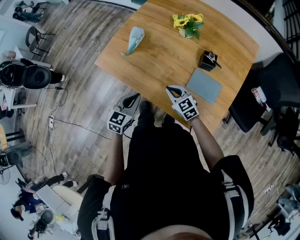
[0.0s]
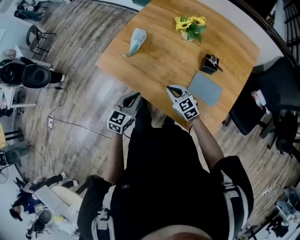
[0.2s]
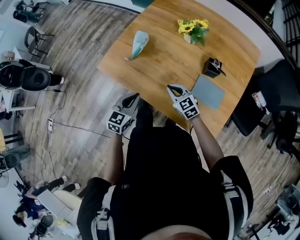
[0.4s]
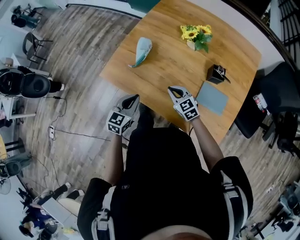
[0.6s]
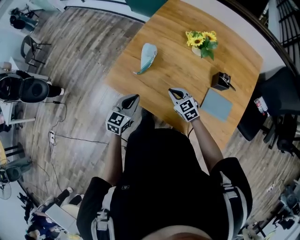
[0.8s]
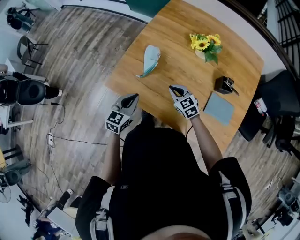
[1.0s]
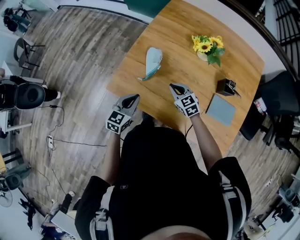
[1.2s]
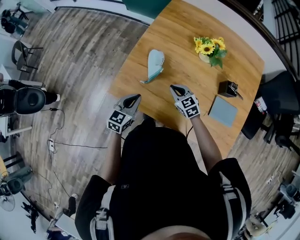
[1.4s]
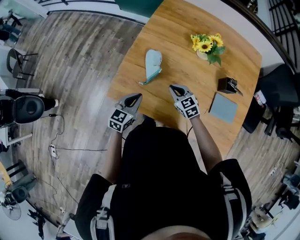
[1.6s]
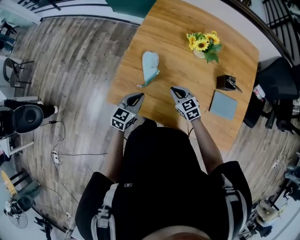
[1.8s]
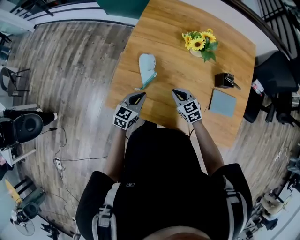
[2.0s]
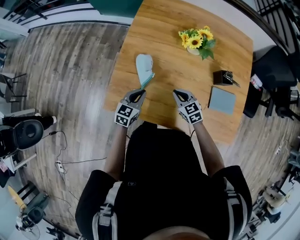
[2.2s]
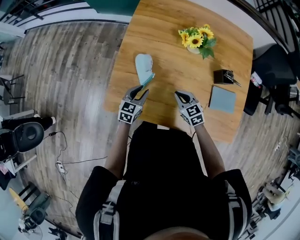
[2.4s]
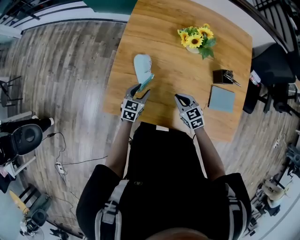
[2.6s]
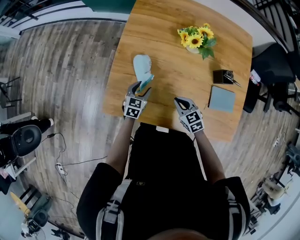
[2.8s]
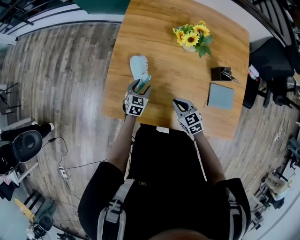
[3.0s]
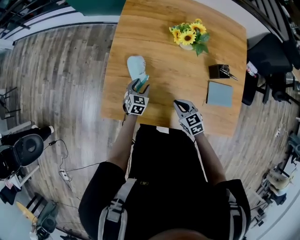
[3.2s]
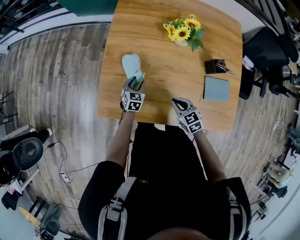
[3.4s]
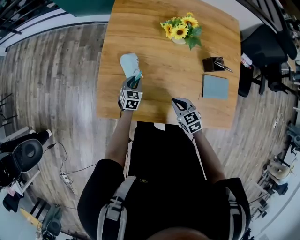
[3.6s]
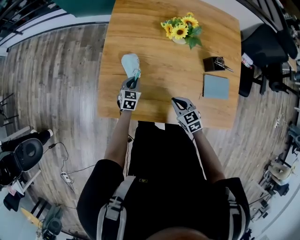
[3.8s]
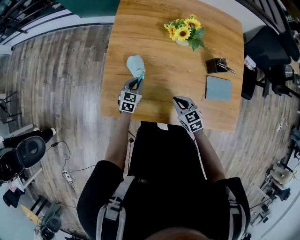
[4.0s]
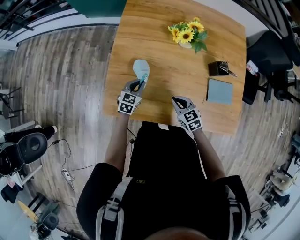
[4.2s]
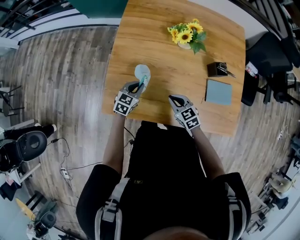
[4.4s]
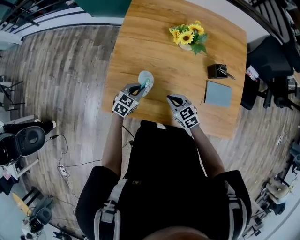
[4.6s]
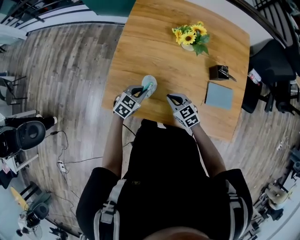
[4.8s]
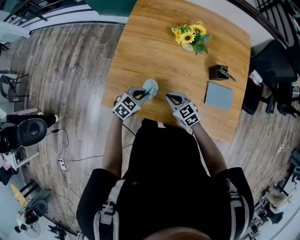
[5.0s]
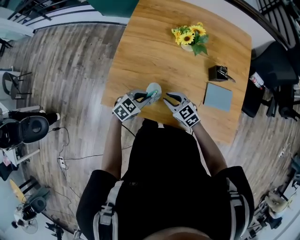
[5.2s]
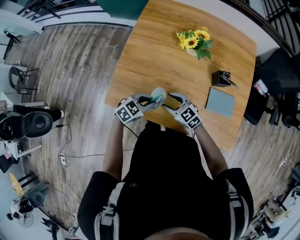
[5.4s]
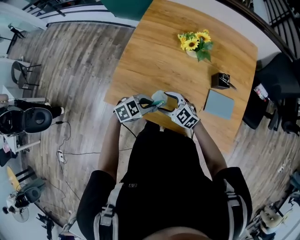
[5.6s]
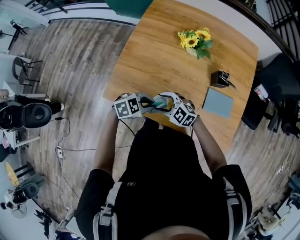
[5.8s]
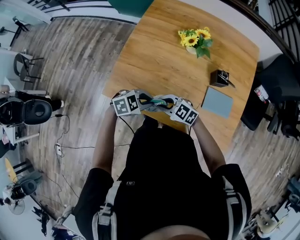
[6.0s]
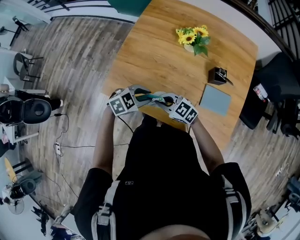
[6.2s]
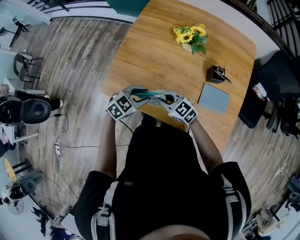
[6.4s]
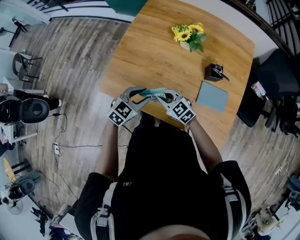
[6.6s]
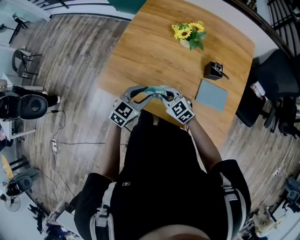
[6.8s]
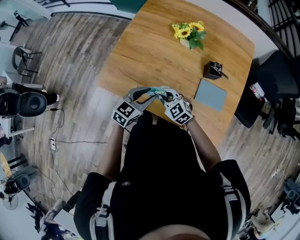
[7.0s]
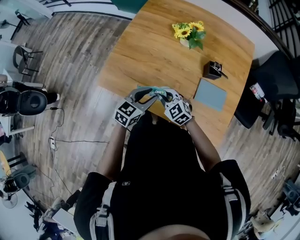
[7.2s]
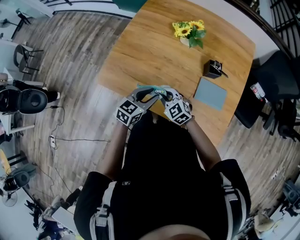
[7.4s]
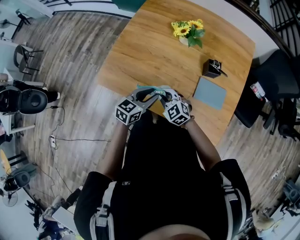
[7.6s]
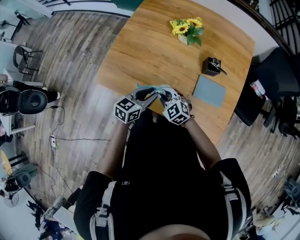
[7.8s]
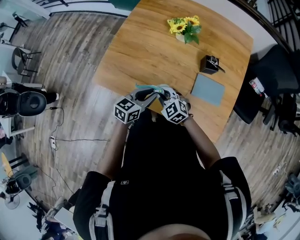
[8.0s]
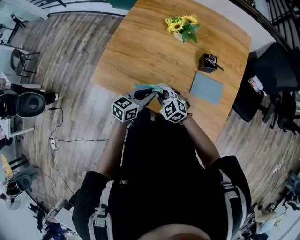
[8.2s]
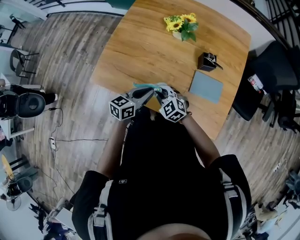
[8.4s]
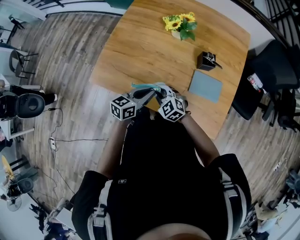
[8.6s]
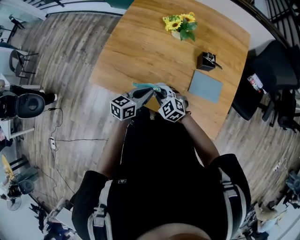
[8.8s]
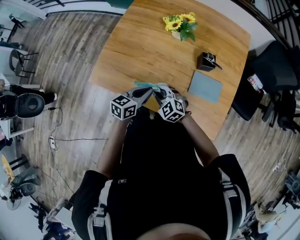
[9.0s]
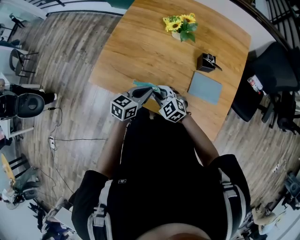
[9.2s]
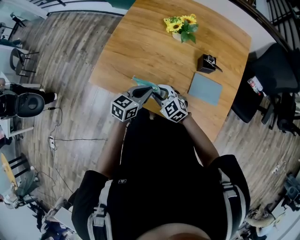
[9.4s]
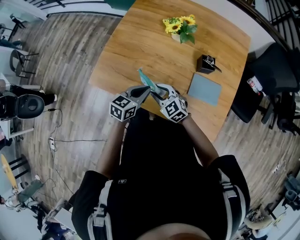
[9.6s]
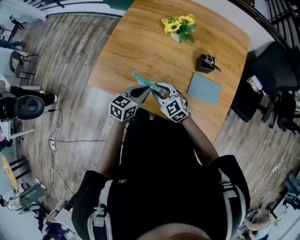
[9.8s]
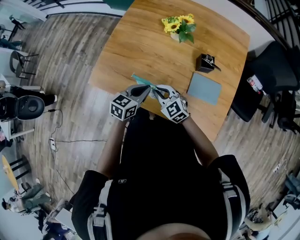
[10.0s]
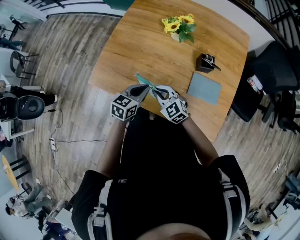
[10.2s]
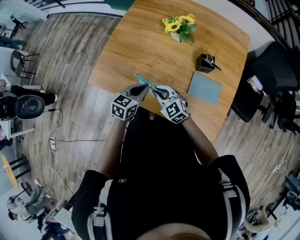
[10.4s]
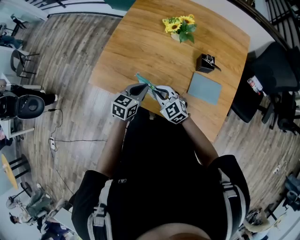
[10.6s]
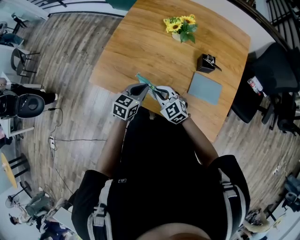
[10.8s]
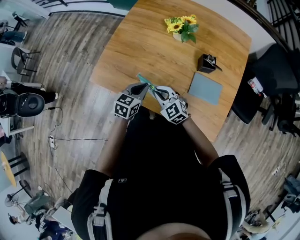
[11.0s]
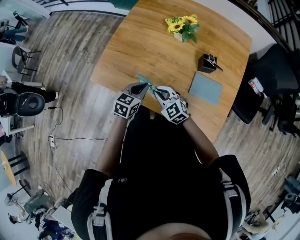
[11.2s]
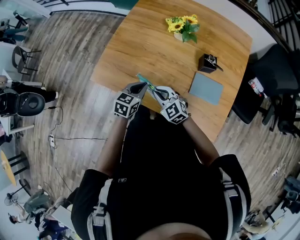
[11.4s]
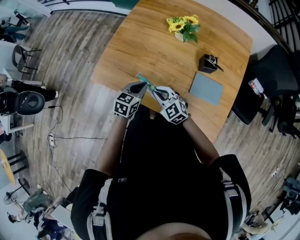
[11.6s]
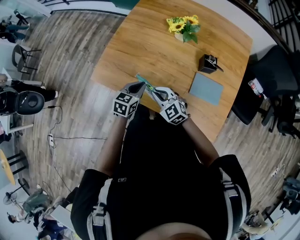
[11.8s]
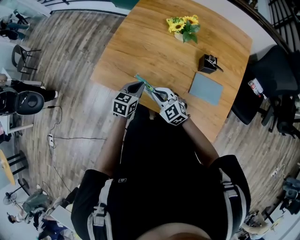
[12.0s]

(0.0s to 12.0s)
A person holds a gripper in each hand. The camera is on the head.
0.0s - 1.6s: The two grippers go about 25 cm forward and to the left.
1.6s - 3.0s: The left gripper heads downward, forward and to the right, covering roughly 20 cm, and opens; the right gripper moves approximately 5 cm.
3.0s - 4.4s: The left gripper heads upward, covering some 5 cm, and closes its fingers.
4.4s - 6.0s: The left gripper moves approximately 20 cm, and turns by roughly 40 degrees. The right gripper moves about 10 cm, rotates roughly 50 degrees, and opens, then closes once more.
6.0s - 7.6s: The left gripper shifts by approximately 5 cm, turns by roughly 50 degrees, and opens its fingers; the right gripper moves approximately 5 cm, and rotates about 20 degrees.
7.6s - 9.0s: The left gripper closes up.
9.0s - 10.4s: The right gripper opens, then closes again.
10.4s - 12.0s: There are only small adjustments of the grippers.

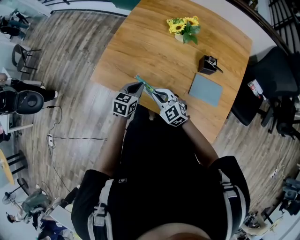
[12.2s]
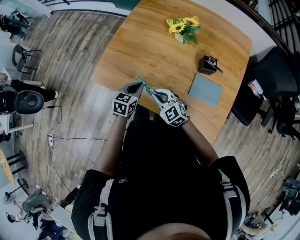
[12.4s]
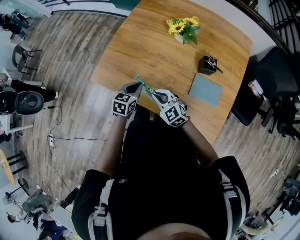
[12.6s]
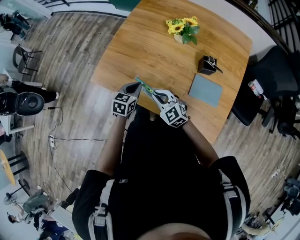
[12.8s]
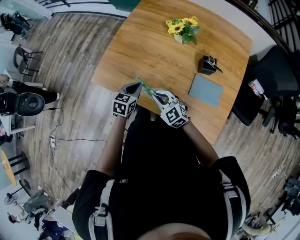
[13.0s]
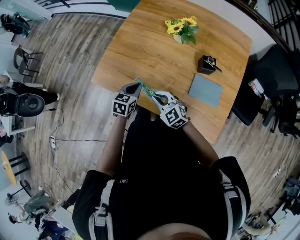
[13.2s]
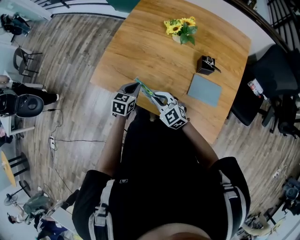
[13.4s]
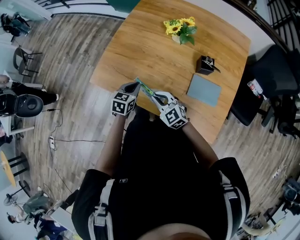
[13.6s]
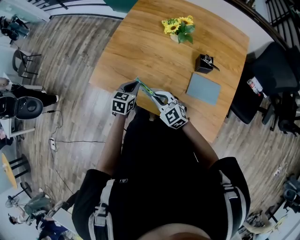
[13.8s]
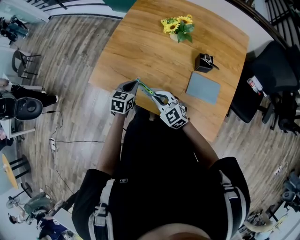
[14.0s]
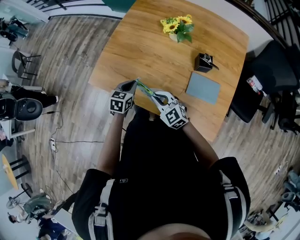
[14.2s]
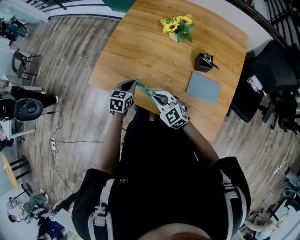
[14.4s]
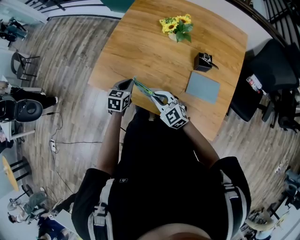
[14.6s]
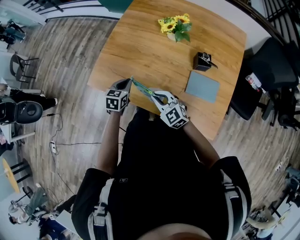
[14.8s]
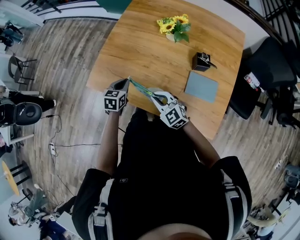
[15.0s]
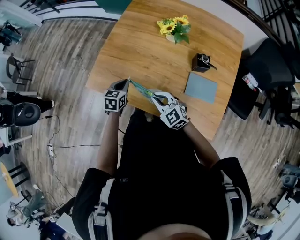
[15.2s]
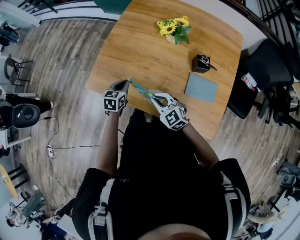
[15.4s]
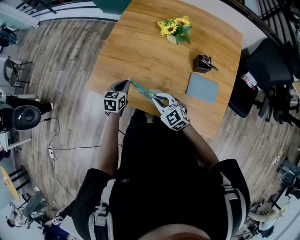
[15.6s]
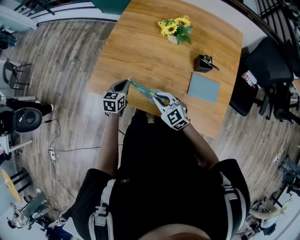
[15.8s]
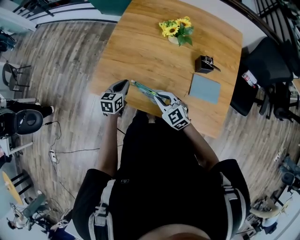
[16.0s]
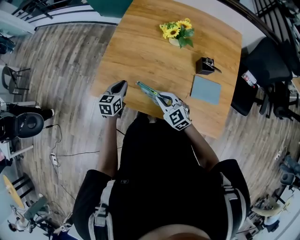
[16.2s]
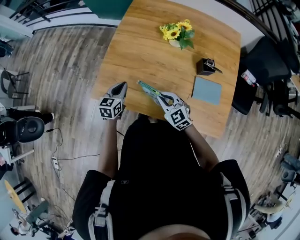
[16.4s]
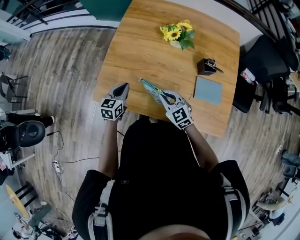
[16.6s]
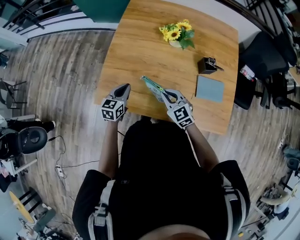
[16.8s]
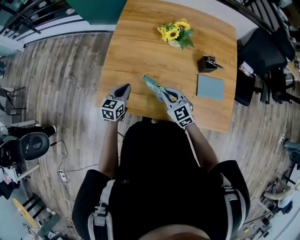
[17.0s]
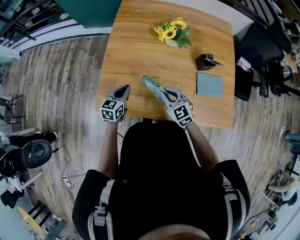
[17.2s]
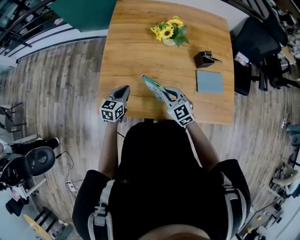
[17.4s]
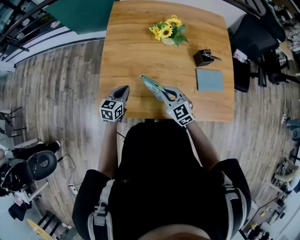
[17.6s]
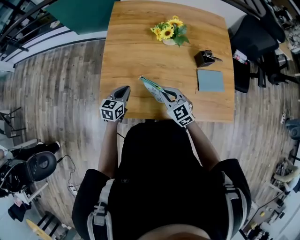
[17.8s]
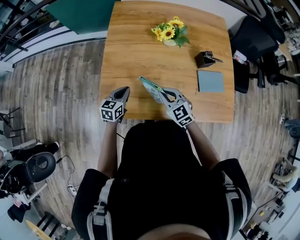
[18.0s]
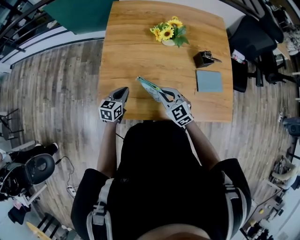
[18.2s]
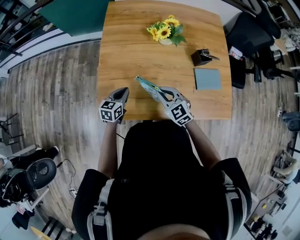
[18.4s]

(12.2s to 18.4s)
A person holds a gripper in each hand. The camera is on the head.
12.2s - 13.8s: There are only small adjustments of the grippers.
13.8s - 15.4s: The left gripper heads to the left, covering approximately 5 cm.
15.4s - 16.8s: The right gripper goes some 10 cm forward; the left gripper is displaced to the left and forward by some 10 cm.
16.8s - 18.4s: The right gripper travels to the left by approximately 5 cm. Meanwhile the left gripper changes place by approximately 5 cm.

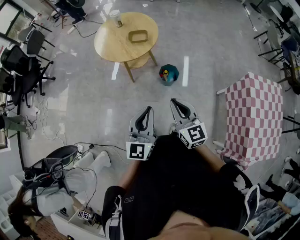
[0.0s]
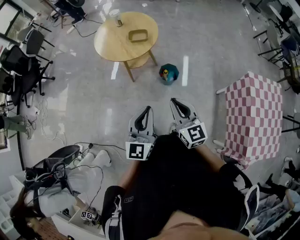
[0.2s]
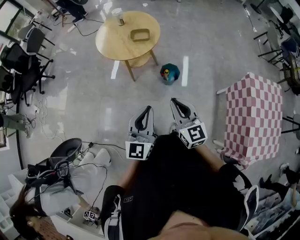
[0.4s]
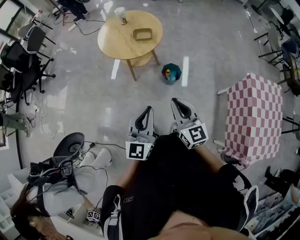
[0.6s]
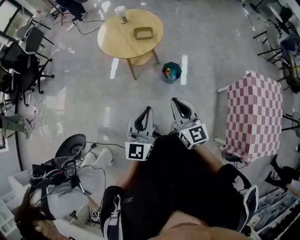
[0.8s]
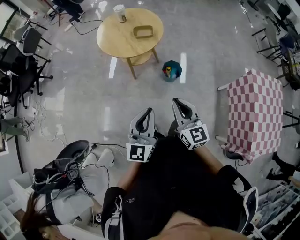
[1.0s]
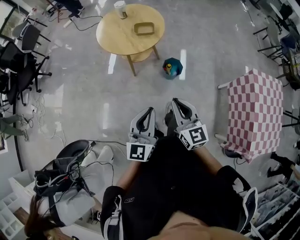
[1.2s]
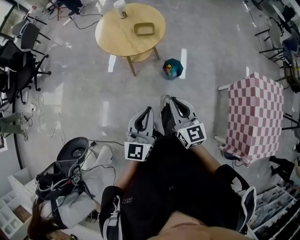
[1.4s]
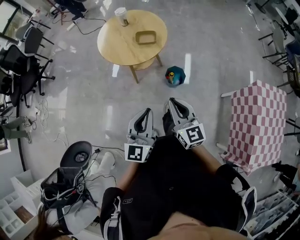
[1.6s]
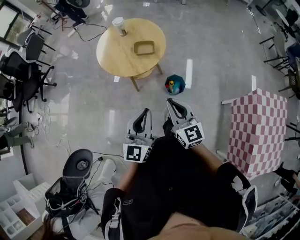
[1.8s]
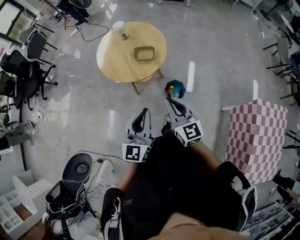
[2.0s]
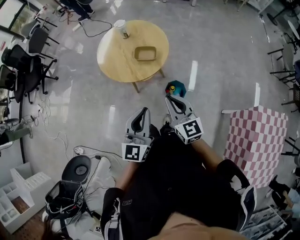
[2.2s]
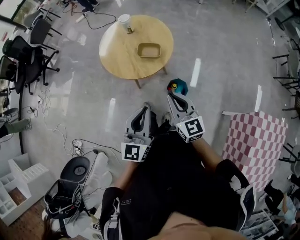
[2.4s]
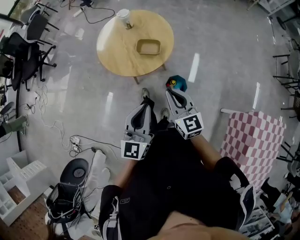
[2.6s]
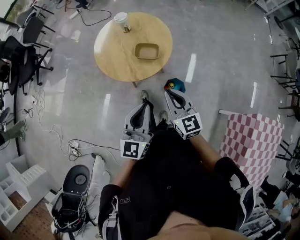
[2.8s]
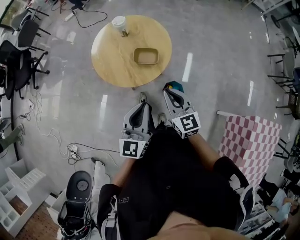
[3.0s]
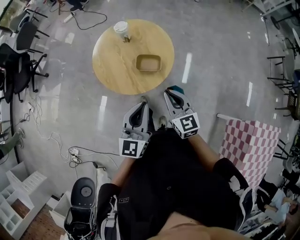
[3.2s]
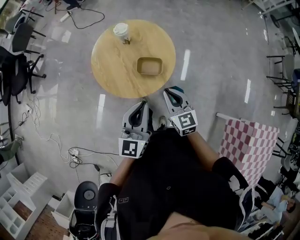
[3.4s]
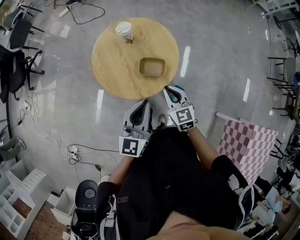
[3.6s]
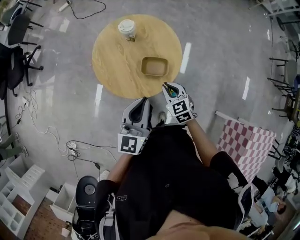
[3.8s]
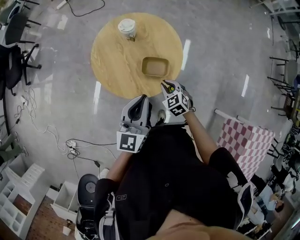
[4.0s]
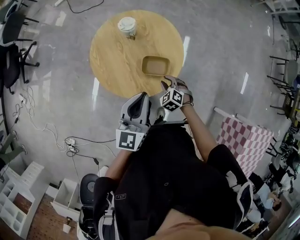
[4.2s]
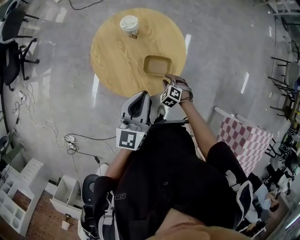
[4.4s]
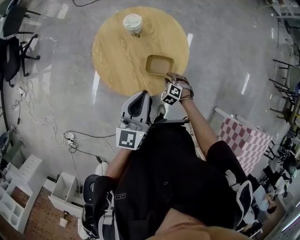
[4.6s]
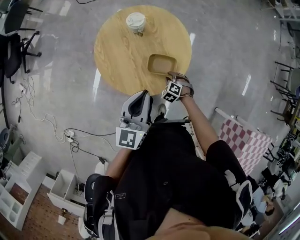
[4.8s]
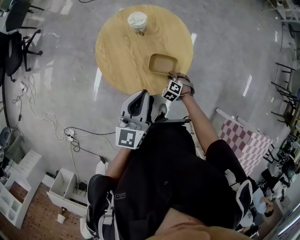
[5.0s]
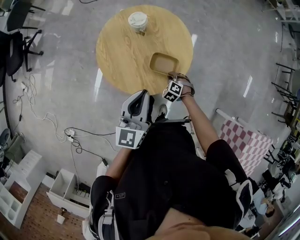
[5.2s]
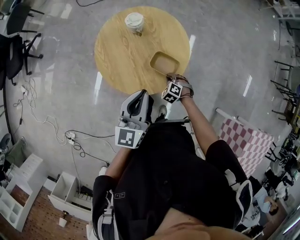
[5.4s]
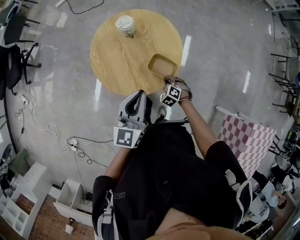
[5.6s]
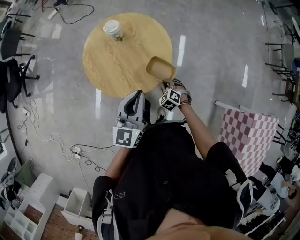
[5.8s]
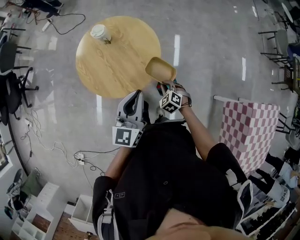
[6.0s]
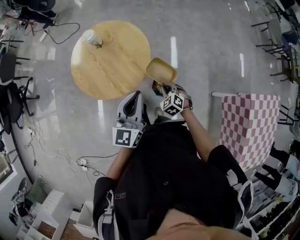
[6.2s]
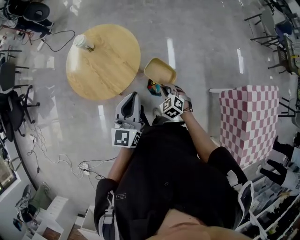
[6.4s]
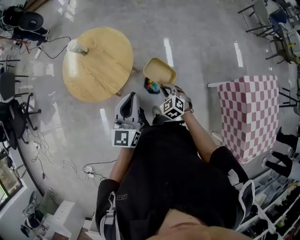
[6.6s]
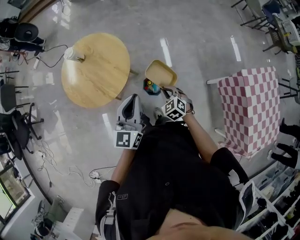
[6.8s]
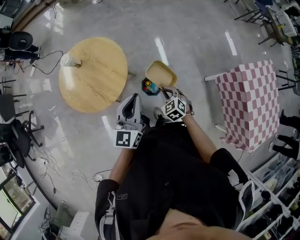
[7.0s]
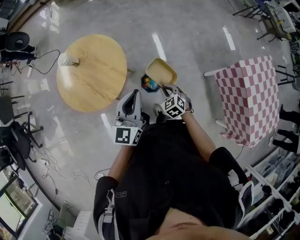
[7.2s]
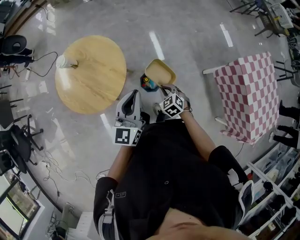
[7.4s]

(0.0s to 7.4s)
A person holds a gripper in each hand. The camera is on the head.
0.0s - 1.4s: Both grippers move to the left, roughly 5 cm.
1.4s - 3.0s: Both grippers move forward, approximately 35 cm.
3.0s - 4.4s: The right gripper is displaced downward and forward by approximately 35 cm, points its fingers some 50 degrees further downward, and opens up; the left gripper is displaced forward by some 20 cm.
4.4s - 6.0s: The right gripper heads backward, to the right and upward, covering approximately 15 cm. Meanwhile the left gripper is displaced to the right and backward by about 10 cm.
6.0s - 7.4s: The right gripper heads to the right and backward, covering about 15 cm, and turns by about 30 degrees, while the left gripper moves to the right, roughly 15 cm.
